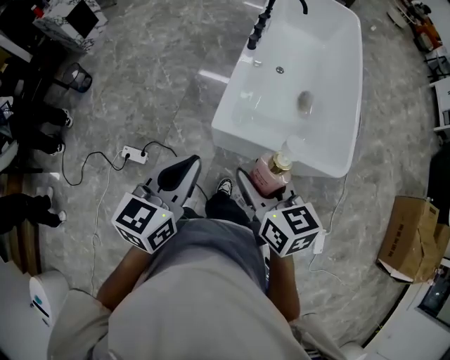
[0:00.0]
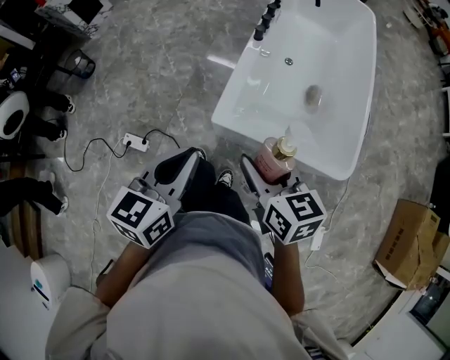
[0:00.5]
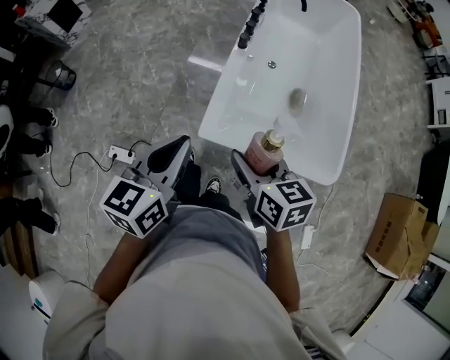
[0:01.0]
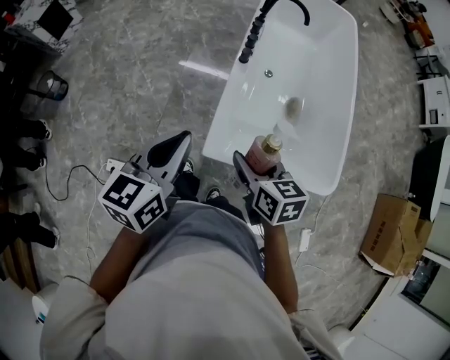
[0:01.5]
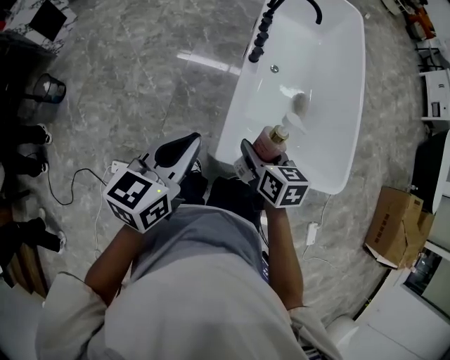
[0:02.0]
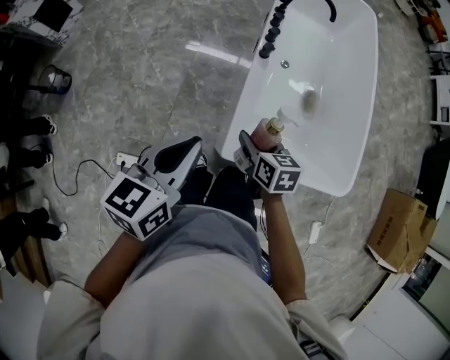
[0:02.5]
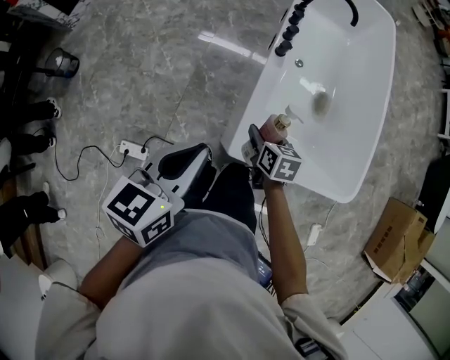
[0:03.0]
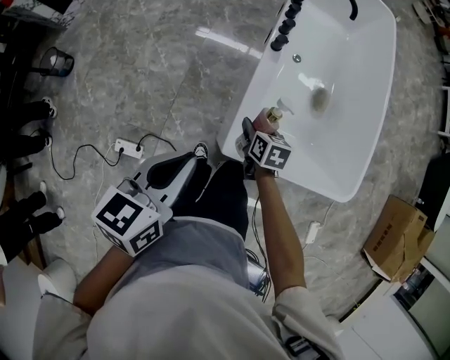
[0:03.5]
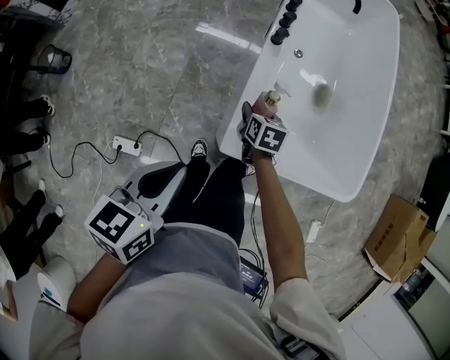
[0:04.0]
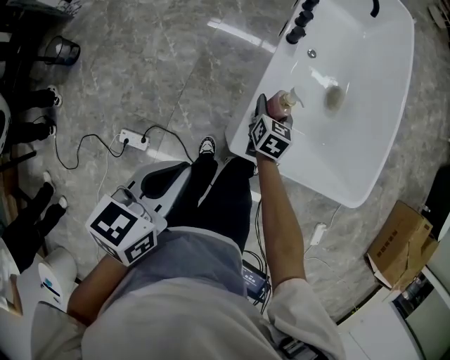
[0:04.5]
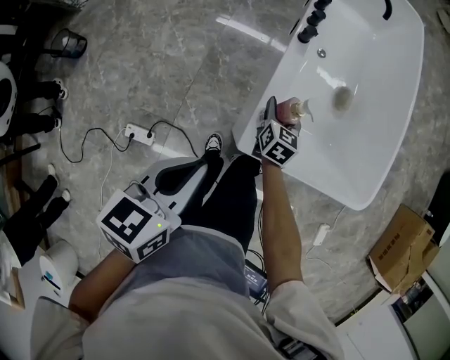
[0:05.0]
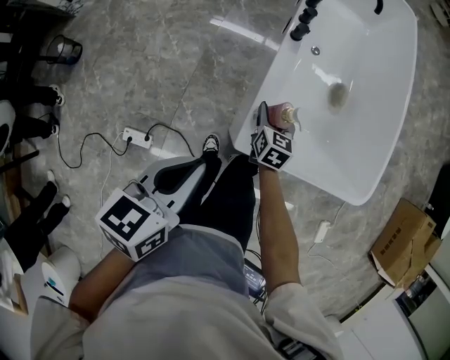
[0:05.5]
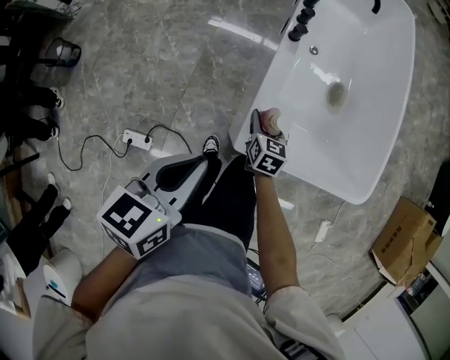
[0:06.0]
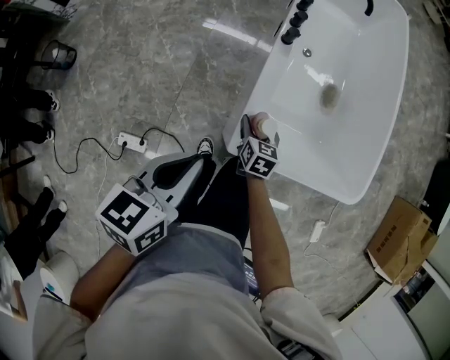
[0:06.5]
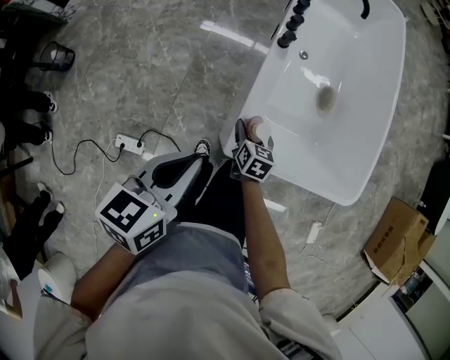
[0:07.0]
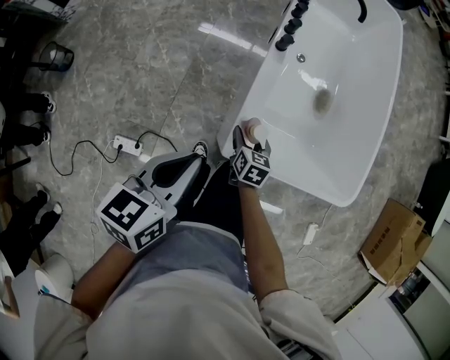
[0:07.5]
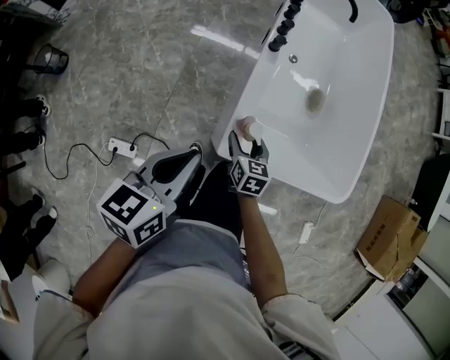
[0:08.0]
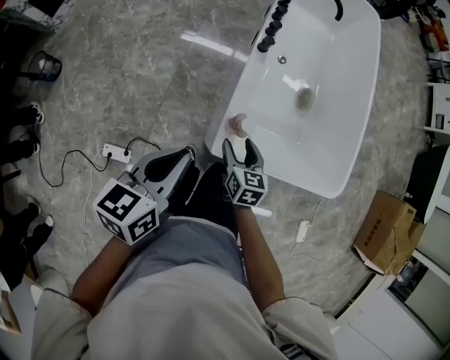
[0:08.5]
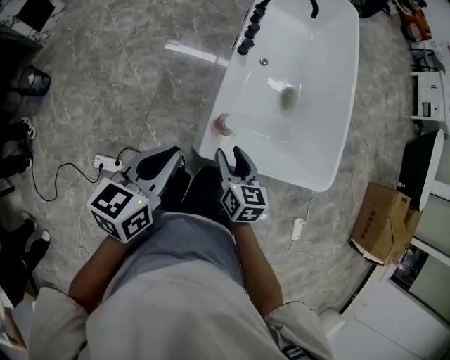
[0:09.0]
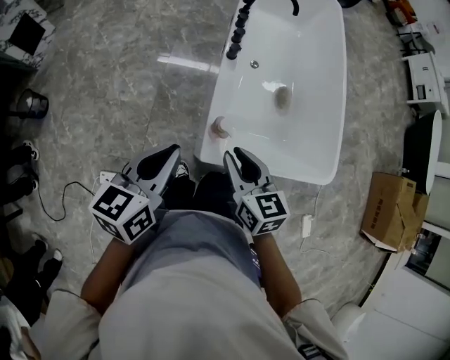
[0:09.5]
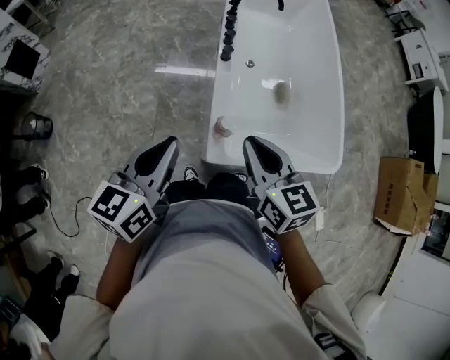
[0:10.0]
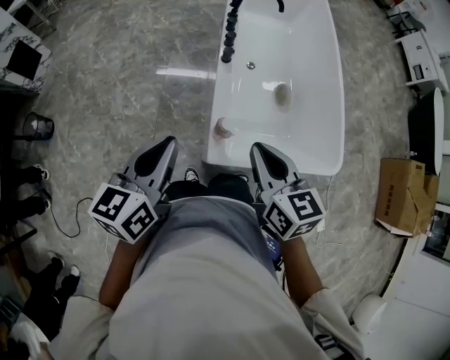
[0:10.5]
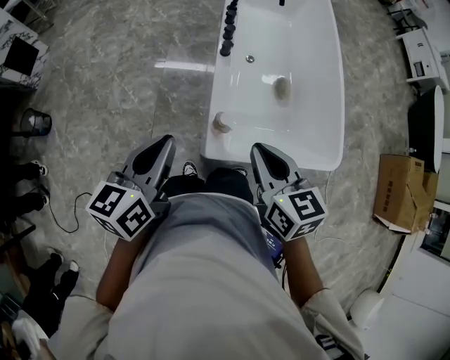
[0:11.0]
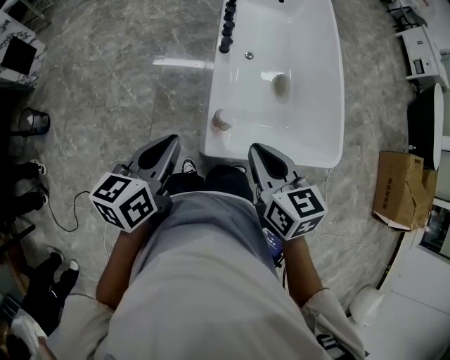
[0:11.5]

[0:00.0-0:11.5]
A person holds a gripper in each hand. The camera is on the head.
0:00.0 to 0:02.0: The left gripper shifts about 25 cm forward. Meanwhile the right gripper heads forward and downward, covering roughly 30 cm.
0:02.0 to 0:04.0: The left gripper moves downward, some 10 cm. Meanwhile the right gripper is displaced downward and forward by some 25 cm.
0:06.0 to 0:07.5: There are only small adjustments of the grippers.
0:07.5 to 0:09.5: The right gripper travels upward by about 25 cm, turns by roughly 20 degrees, and closes. The left gripper shifts some 5 cm upward.
0:09.5 to 0:11.5: The right gripper heads upward, covering about 5 cm.

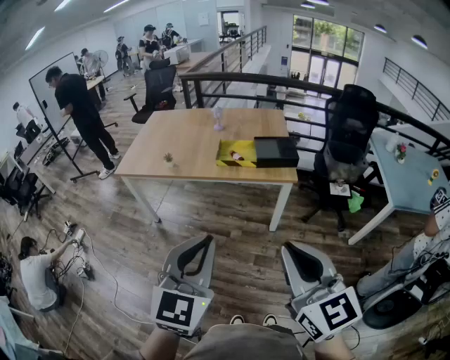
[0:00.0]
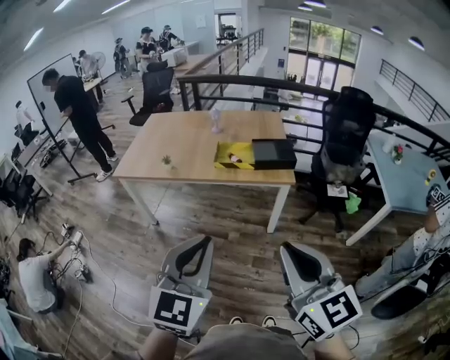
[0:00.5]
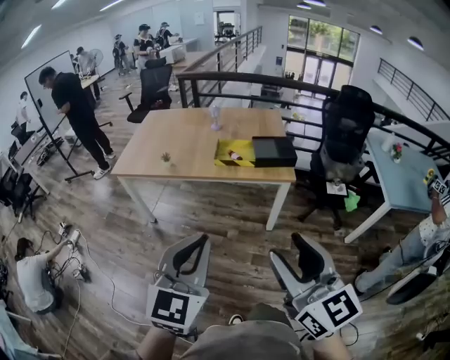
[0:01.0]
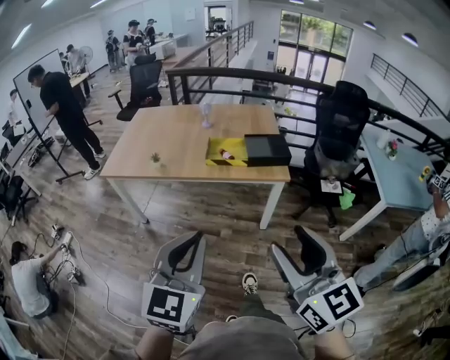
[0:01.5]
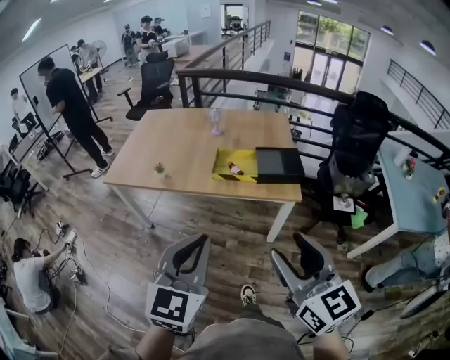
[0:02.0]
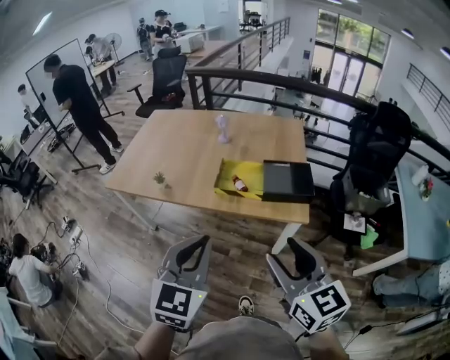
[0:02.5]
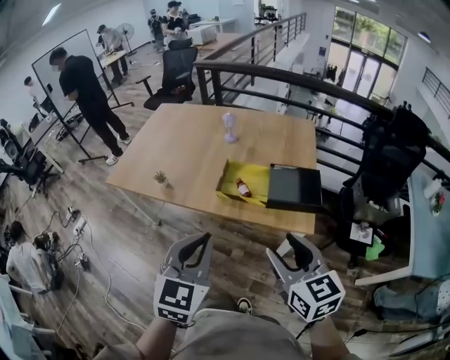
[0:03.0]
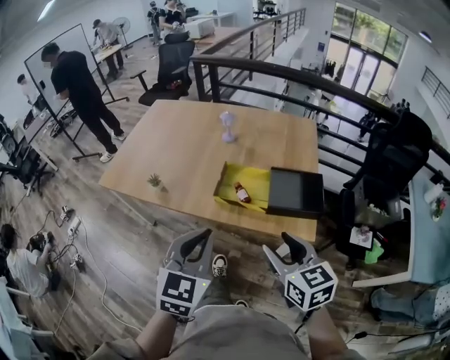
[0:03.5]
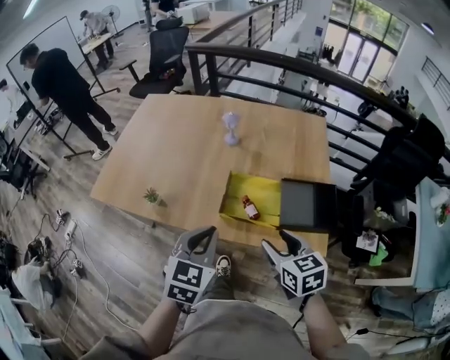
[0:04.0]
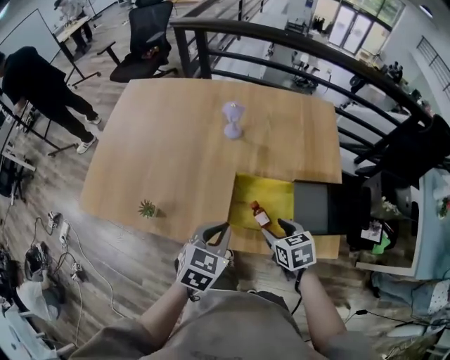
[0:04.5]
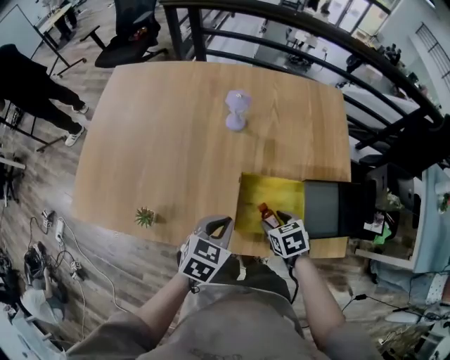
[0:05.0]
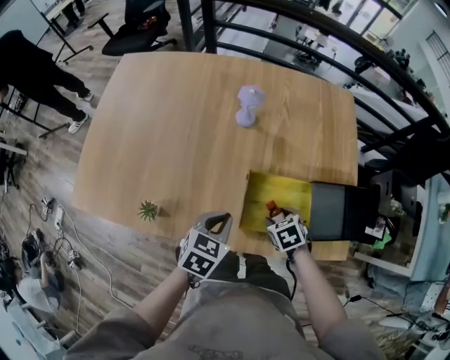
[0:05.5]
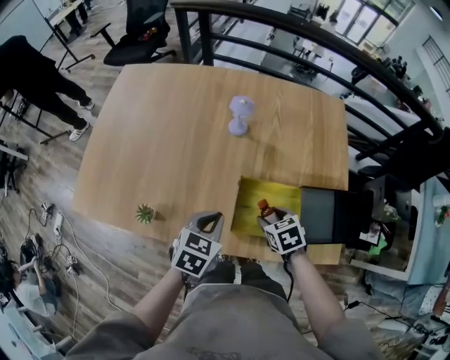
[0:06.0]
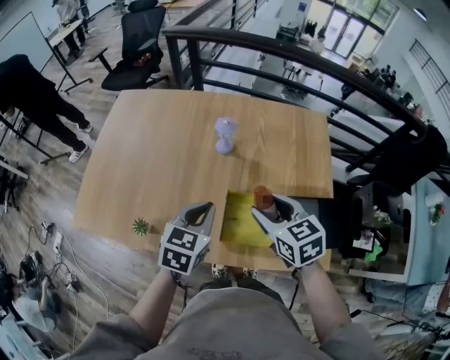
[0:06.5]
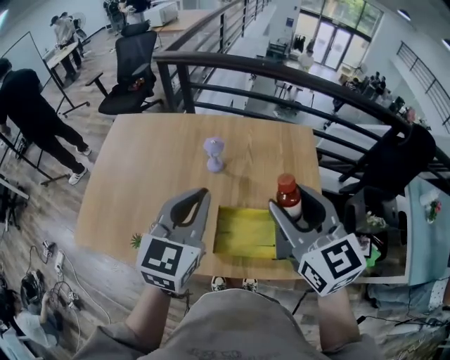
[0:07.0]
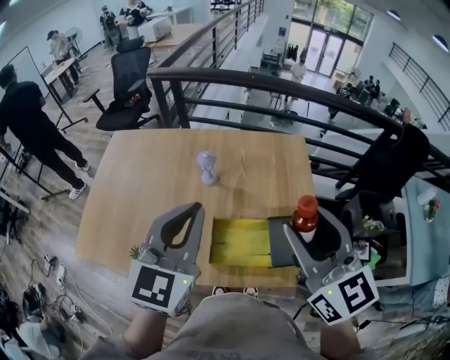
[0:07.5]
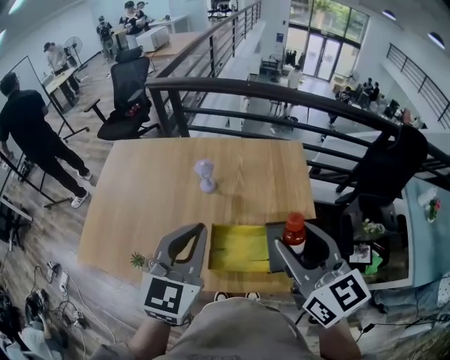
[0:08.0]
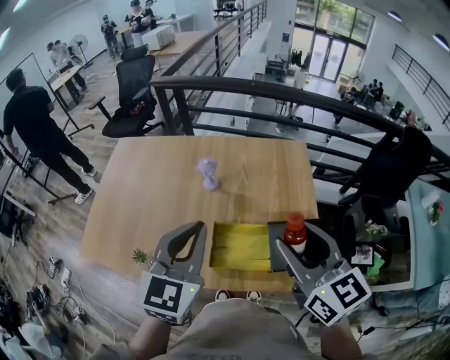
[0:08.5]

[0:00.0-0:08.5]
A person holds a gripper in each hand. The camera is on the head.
0:00.0 to 0:02.0: Both grippers move forward, some 15 cm. The right gripper opens its fingers.
0:02.0 to 0:04.0: The right gripper travels forward and downward by approximately 50 cm, and rotates approximately 30 degrees. The left gripper heads forward, covering approximately 40 cm, and swivels some 20 degrees.
0:04.0 to 0:06.5: The two grippers go roughly 20 cm forward. The right gripper reaches approximately 25 cm downward, then returns.
0:06.5 to 0:08.5: The right gripper travels upward and to the right by about 25 cm, and changes its angle by approximately 30 degrees. Meanwhile the left gripper is displaced upward by roughly 20 cm, and changes its angle by about 20 degrees.

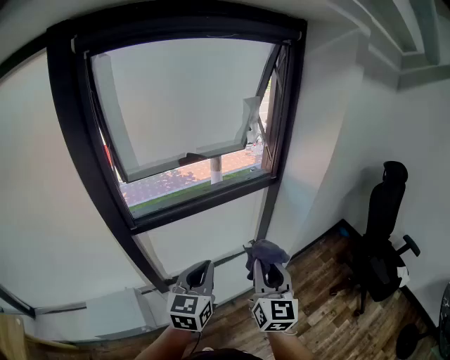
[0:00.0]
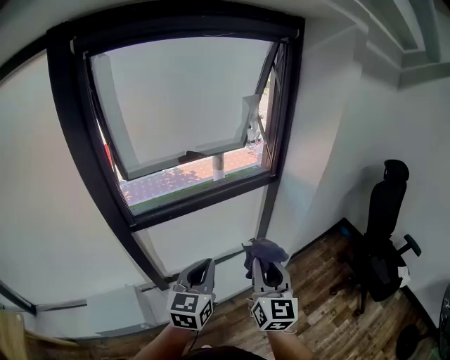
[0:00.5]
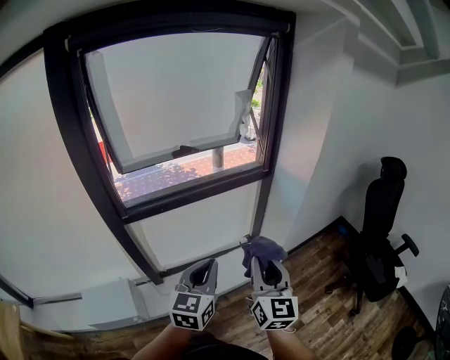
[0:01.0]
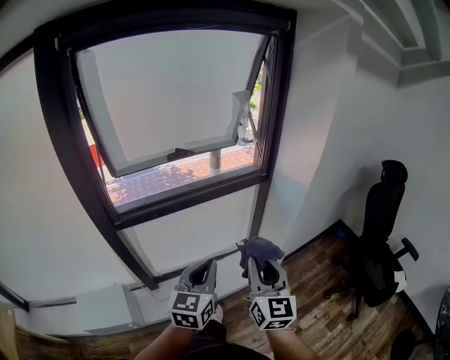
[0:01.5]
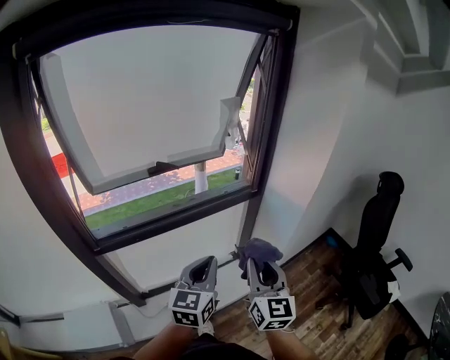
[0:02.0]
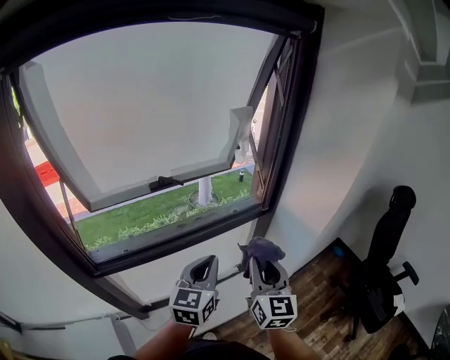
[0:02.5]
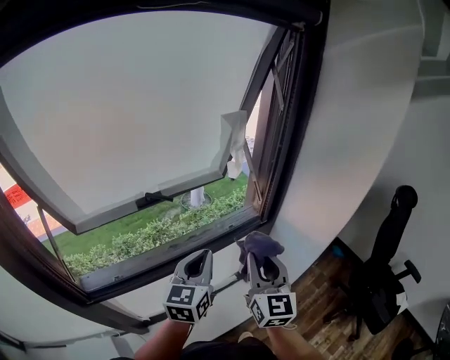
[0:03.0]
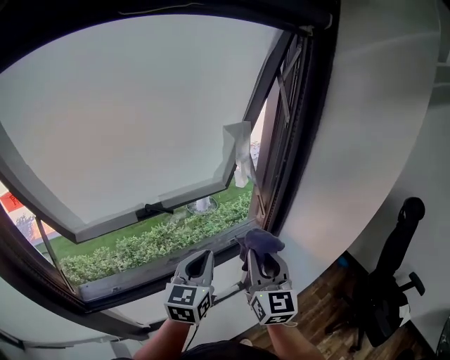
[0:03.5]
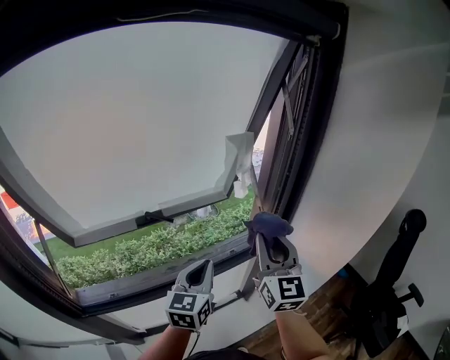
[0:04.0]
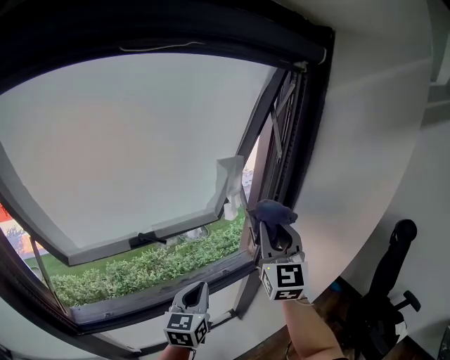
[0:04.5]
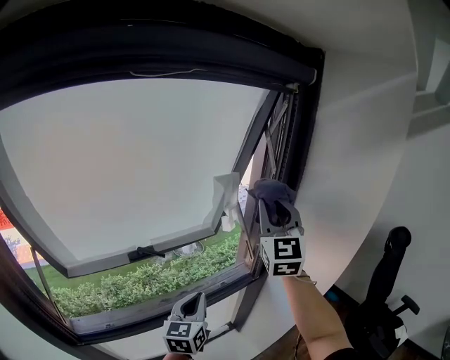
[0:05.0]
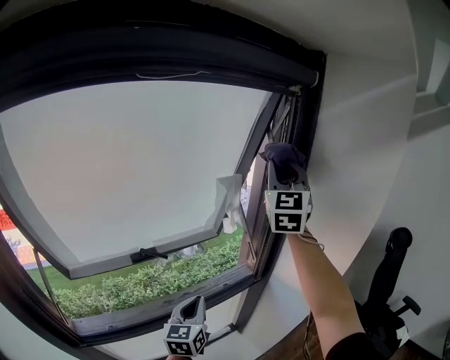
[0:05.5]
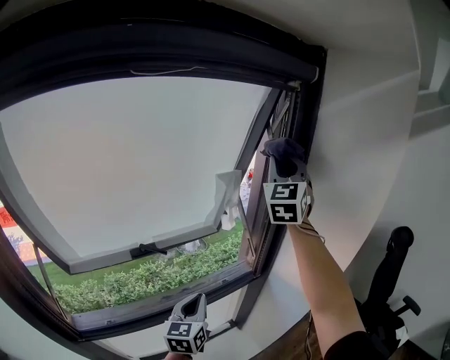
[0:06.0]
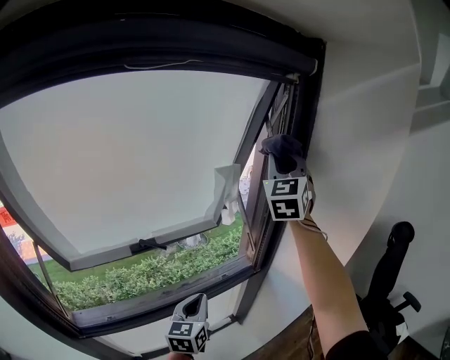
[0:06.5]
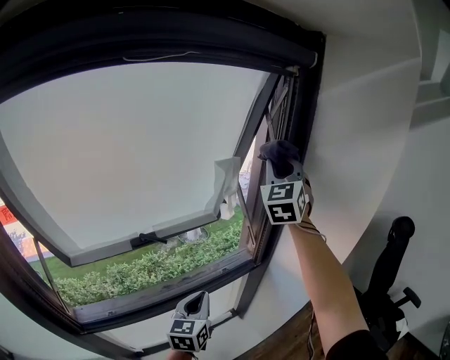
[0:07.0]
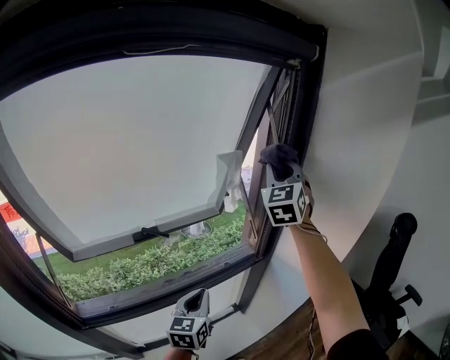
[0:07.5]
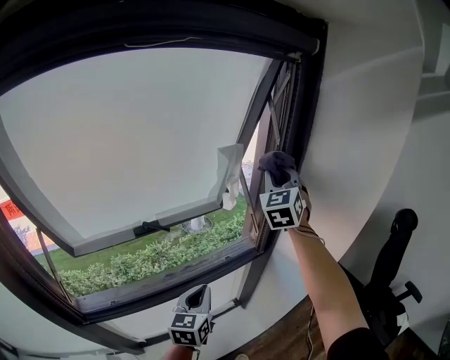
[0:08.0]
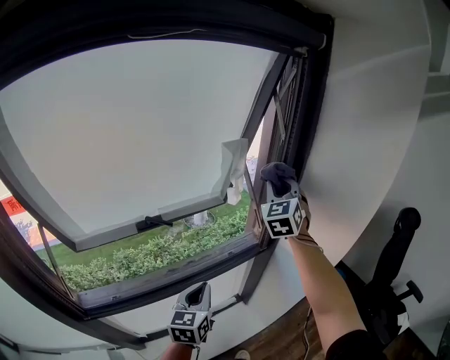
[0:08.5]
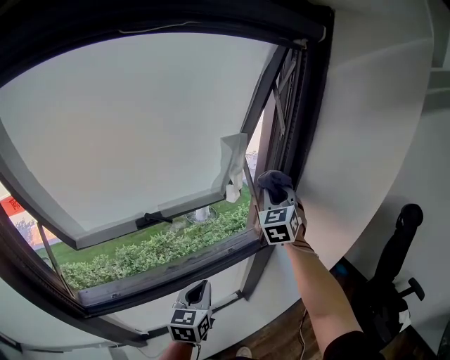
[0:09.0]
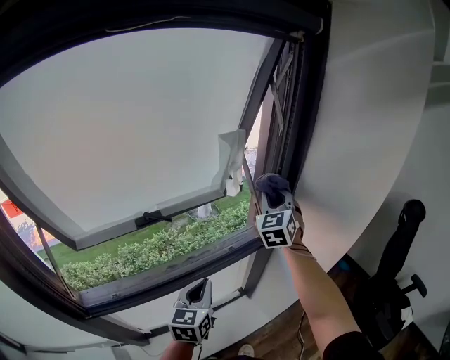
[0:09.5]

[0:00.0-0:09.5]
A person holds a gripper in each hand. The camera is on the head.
0:00.0 to 0:02.0: Both grippers travel together forward and to the right, some 20 cm.
0:02.0 to 0:04.0: The two grippers go some 30 cm forward.
0:04.0 to 0:05.5: The right gripper shifts roughly 30 cm upward and forward, and swivels roughly 30 degrees.
0:05.5 to 0:07.5: The right gripper goes roughly 10 cm downward.
0:07.5 to 0:09.5: The right gripper goes approximately 15 cm downward.
